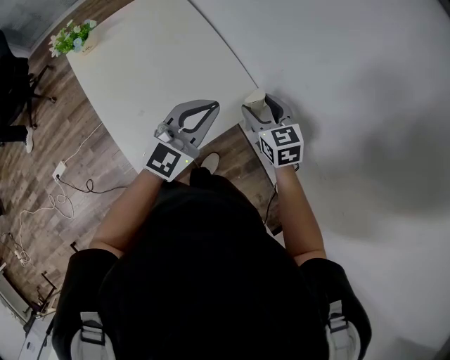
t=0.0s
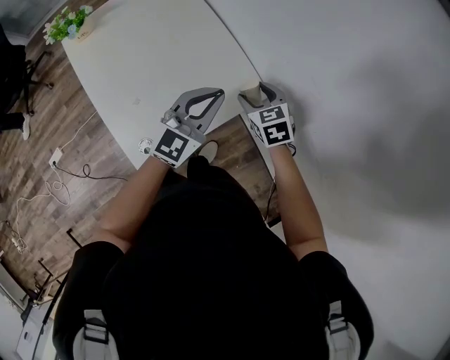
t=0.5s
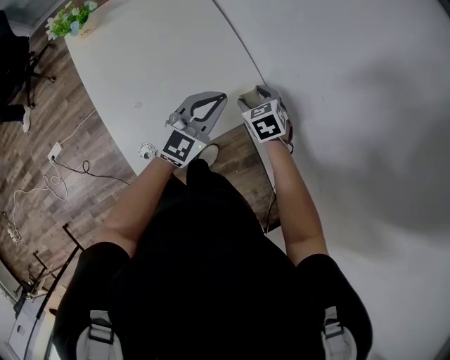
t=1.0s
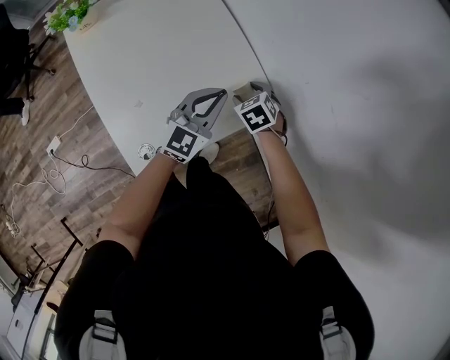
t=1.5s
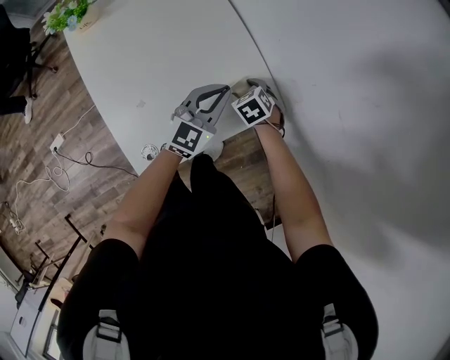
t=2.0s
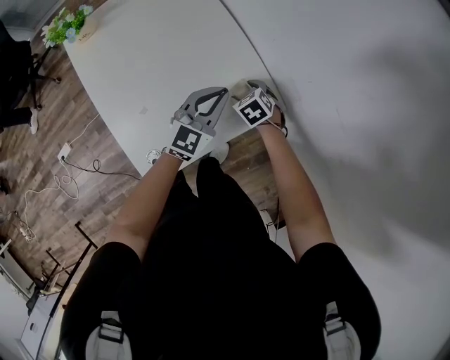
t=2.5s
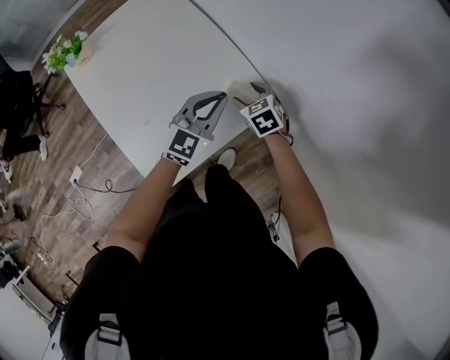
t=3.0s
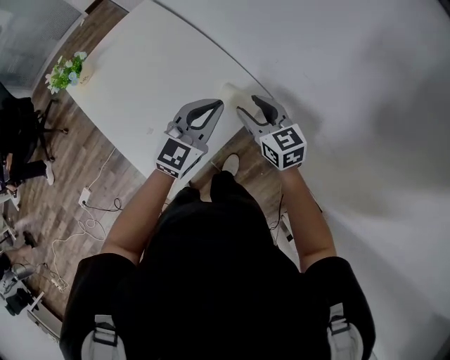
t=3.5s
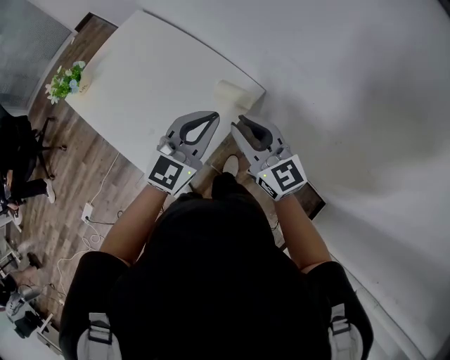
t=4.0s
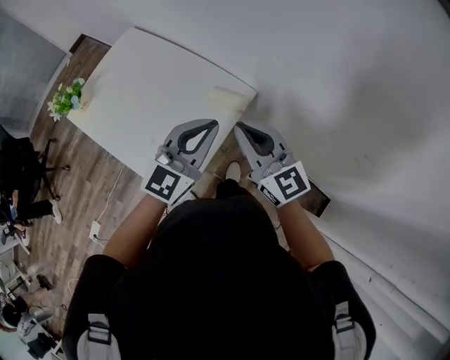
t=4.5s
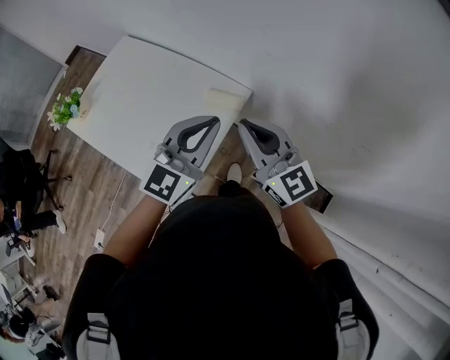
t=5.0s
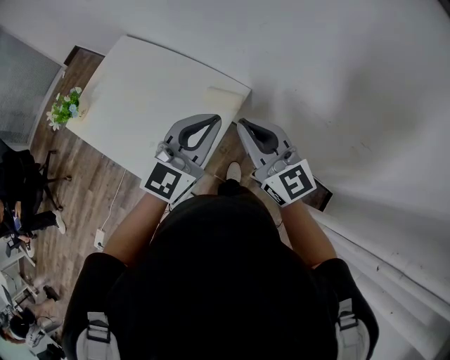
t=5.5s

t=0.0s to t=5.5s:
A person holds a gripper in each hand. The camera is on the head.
t=0.0s to t=2.0s: The left gripper goes about 15 cm downward and forward. The right gripper shifts approximately 20 cm downward, and angles its fingers downward, by some 30 degrees.
t=2.0s to t=3.5s: The right gripper moves upward, about 20 cm, and angles its fingers upward, by some 40 degrees. The left gripper goes roughly 10 cm upward.
t=3.5s to t=5.5s: The two grippers go approximately 20 cm upward and backward. The right gripper turns by roughly 30 degrees, and closes up.

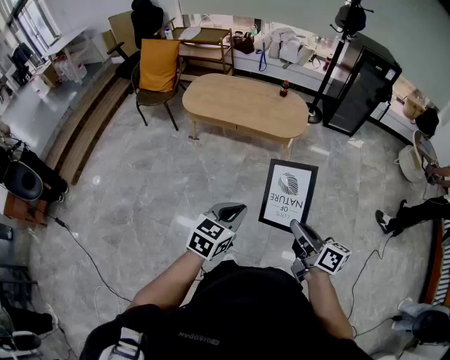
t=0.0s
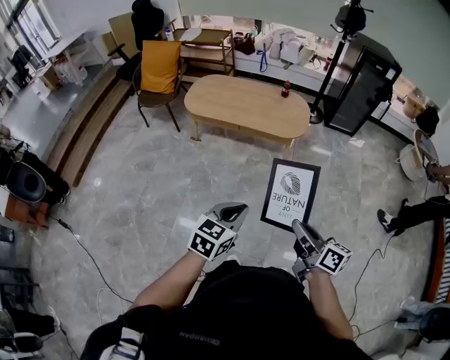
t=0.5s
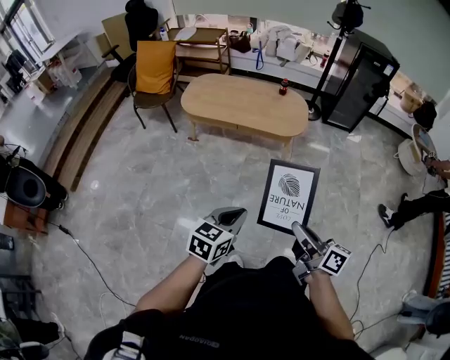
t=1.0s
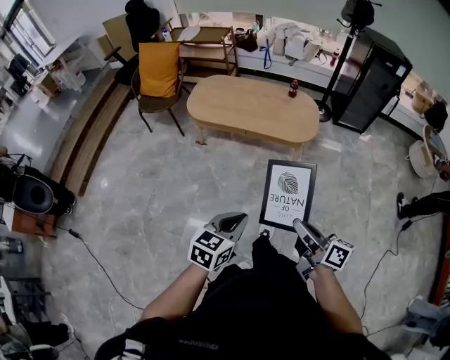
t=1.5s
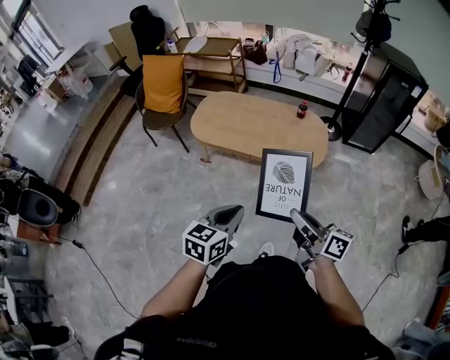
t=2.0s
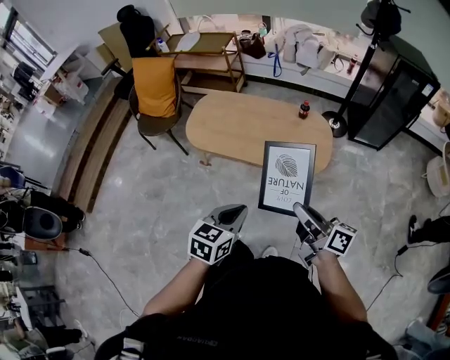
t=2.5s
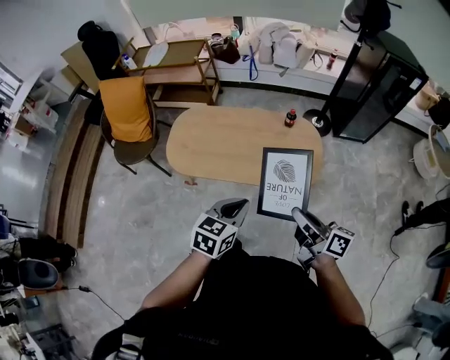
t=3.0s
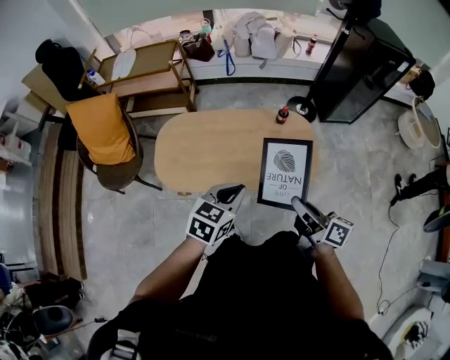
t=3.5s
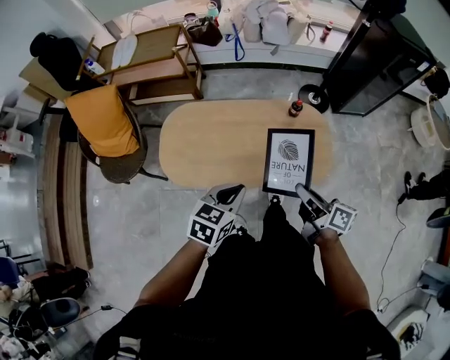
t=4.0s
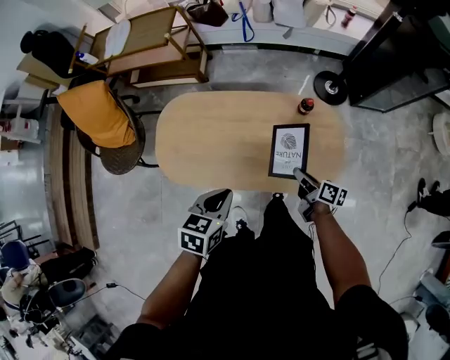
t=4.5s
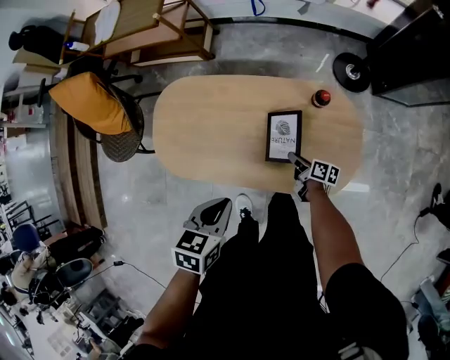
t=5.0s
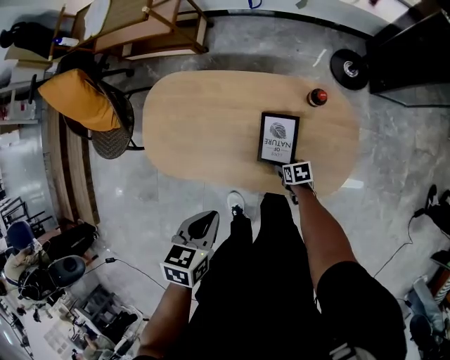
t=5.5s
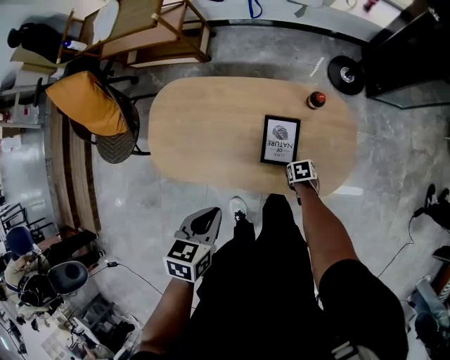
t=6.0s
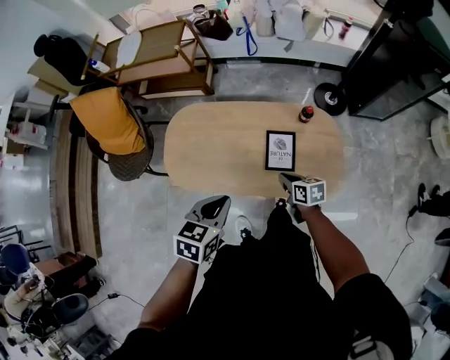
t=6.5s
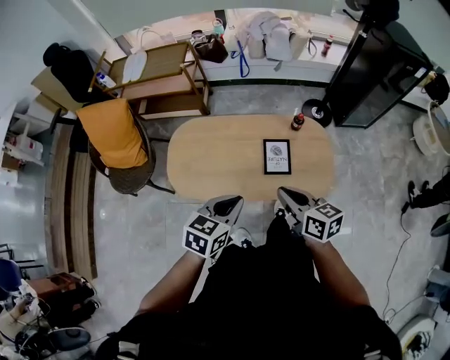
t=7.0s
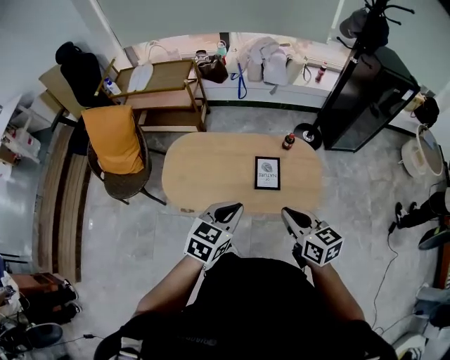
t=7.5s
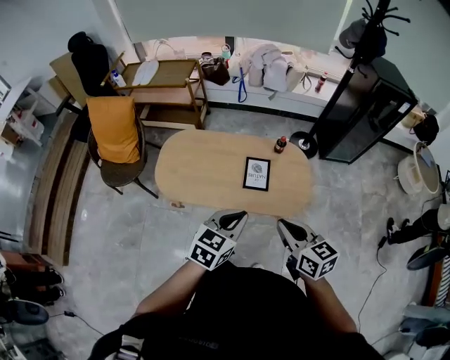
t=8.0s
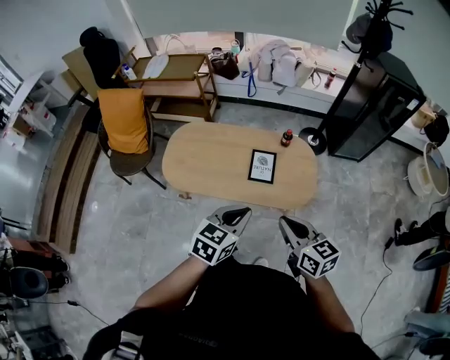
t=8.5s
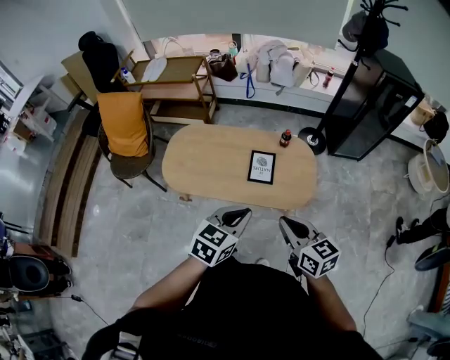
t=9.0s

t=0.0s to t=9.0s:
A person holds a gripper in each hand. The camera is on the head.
t=0.0s to t=2.0s: The two grippers go some 25 cm forward.
t=2.0s to t=4.5s: The two grippers travel together, forward, approximately 50 cm. The right gripper heads downward, covering roughly 30 cm, and turns by about 30 degrees. The left gripper turns by some 20 degrees.
t=4.5s to t=7.0s: The left gripper heads upward, covering some 10 cm; the right gripper heads upward, covering about 25 cm, rotates about 40 degrees, and opens and closes again.
t=7.0s to t=9.0s: The left gripper heads to the right and backward, covering approximately 20 cm. The right gripper goes some 20 cm backward, to the right and upward.

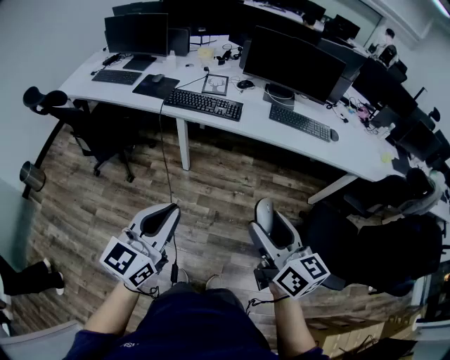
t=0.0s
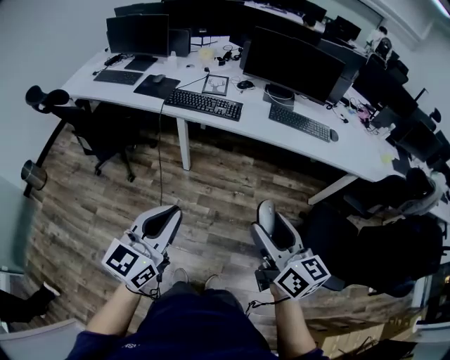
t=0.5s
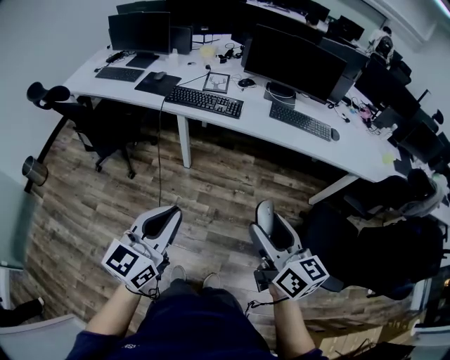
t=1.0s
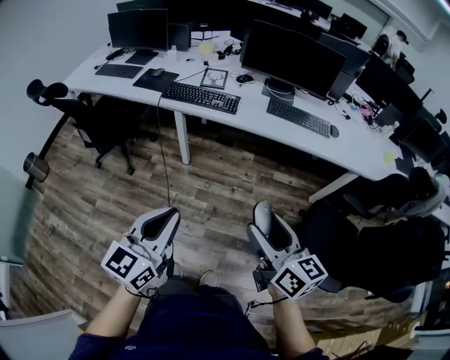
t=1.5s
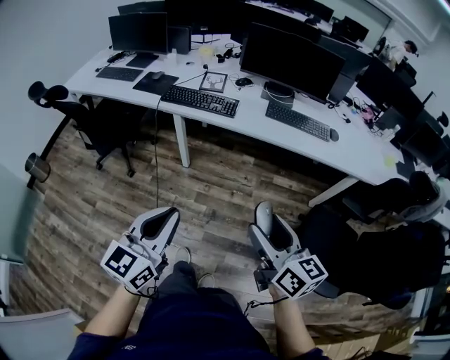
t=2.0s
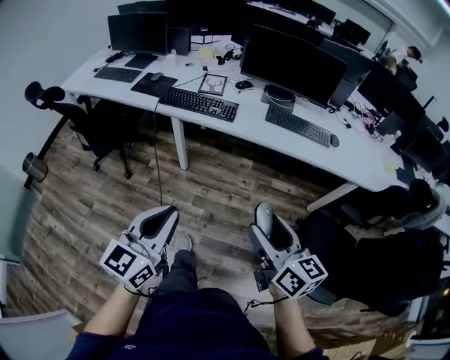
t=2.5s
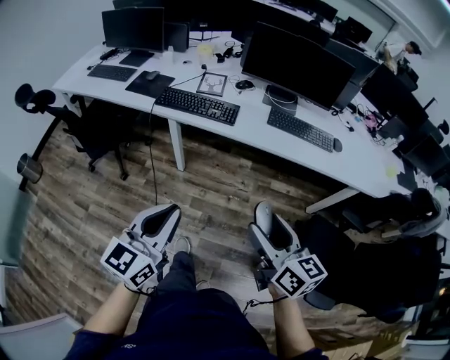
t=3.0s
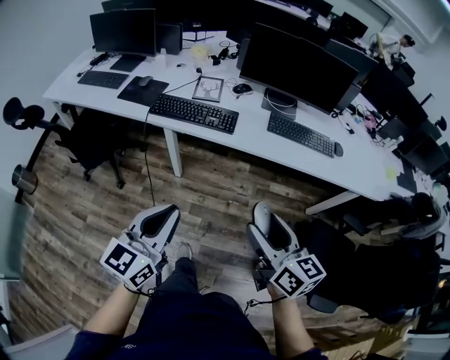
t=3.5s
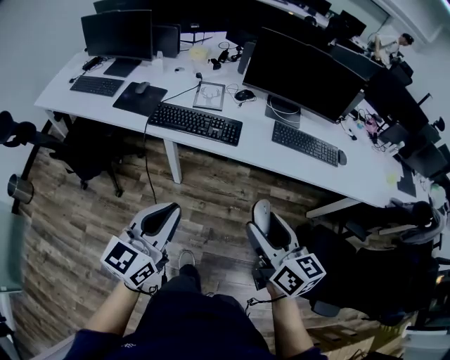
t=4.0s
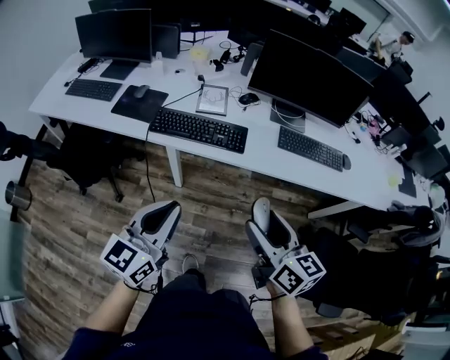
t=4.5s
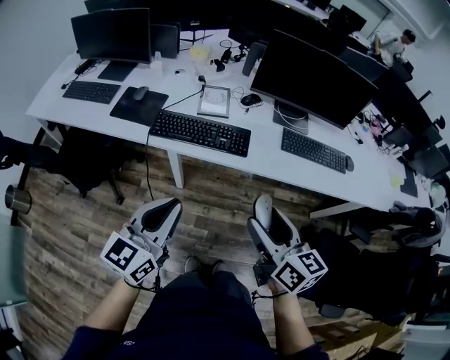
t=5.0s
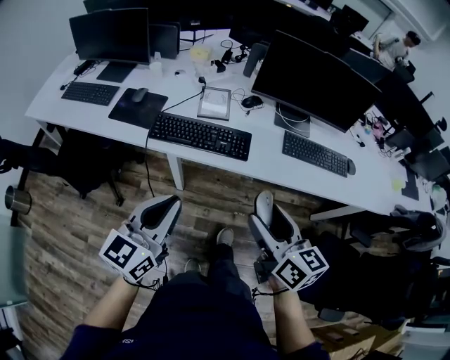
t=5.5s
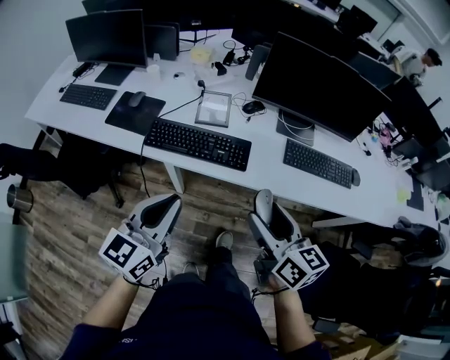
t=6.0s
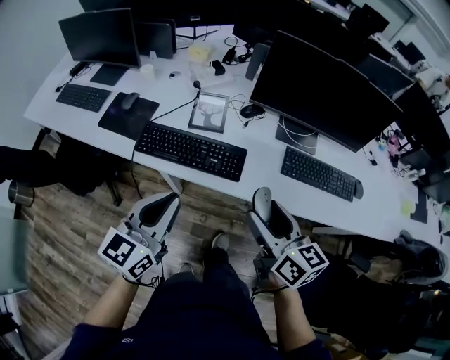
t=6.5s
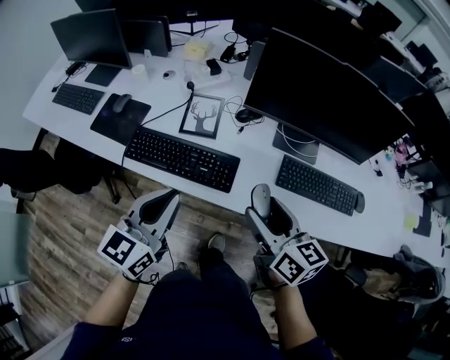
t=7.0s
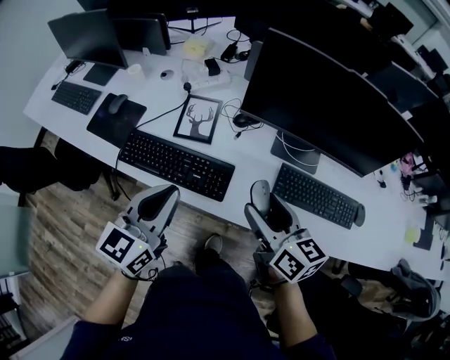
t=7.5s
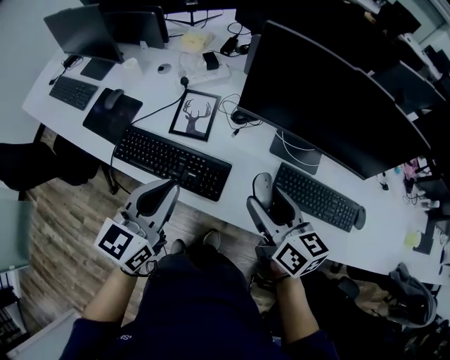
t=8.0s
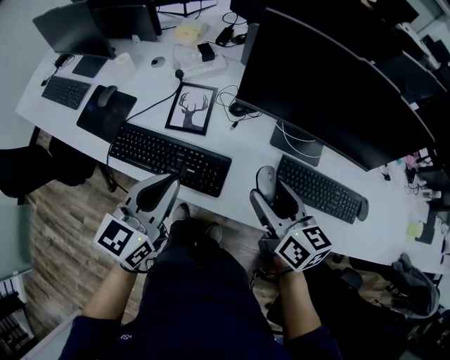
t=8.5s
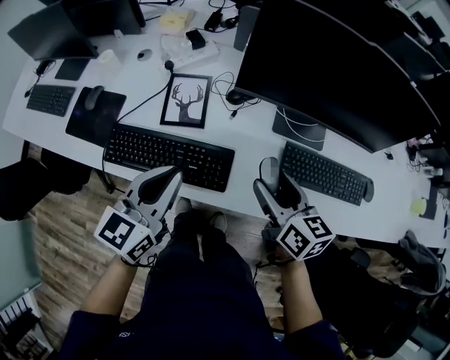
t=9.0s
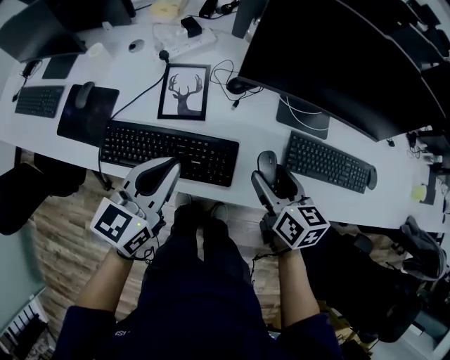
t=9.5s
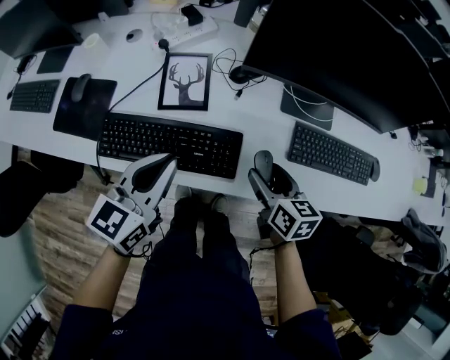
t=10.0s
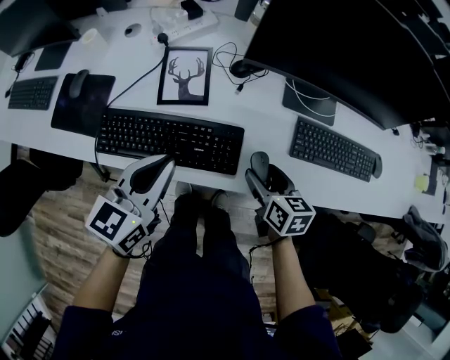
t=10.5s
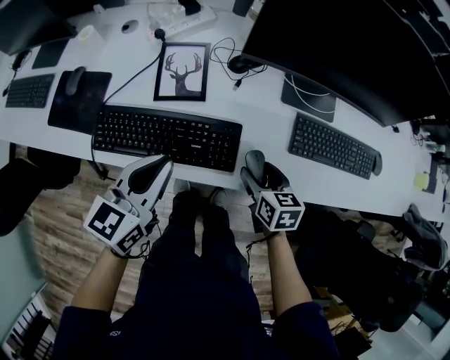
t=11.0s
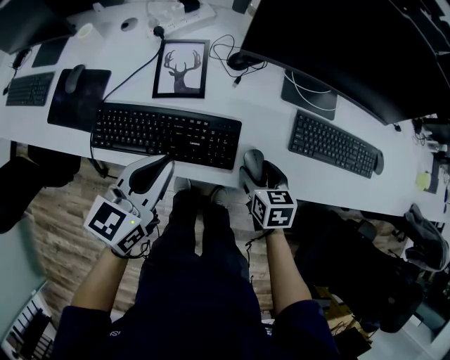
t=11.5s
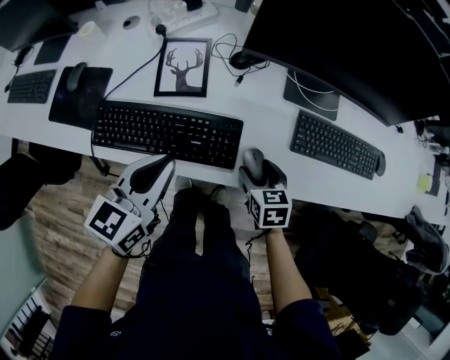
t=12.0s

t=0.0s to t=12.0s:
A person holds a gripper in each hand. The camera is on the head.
t=0.0s to t=2.0s: The two grippers go some 10 cm to the right.
t=2.0s to t=4.0s: Both grippers move forward, about 25 cm.
t=4.0s to t=6.0s: The grippers both shift forward by roughly 15 cm.
t=6.0s to t=8.0s: Both grippers travel together forward and to the right, approximately 25 cm.
t=8.0s to t=10.0s: The left gripper moves downward and to the left, roughly 10 cm, while the right gripper shifts roughly 15 cm downward, and swivels some 30 degrees.
t=10.0s to t=12.0s: The right gripper is displaced downward by roughly 10 cm, and rotates approximately 20 degrees.
